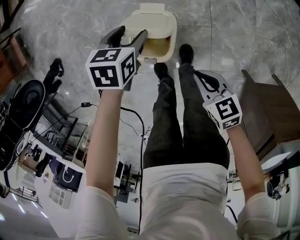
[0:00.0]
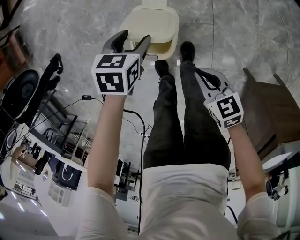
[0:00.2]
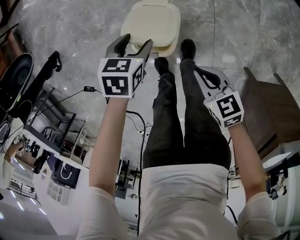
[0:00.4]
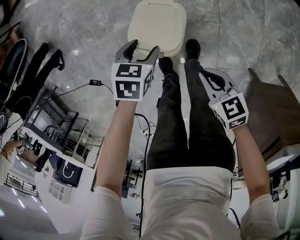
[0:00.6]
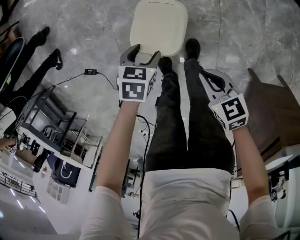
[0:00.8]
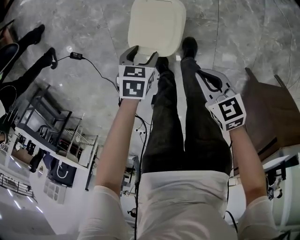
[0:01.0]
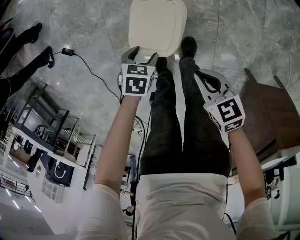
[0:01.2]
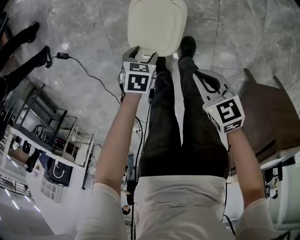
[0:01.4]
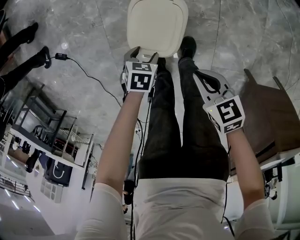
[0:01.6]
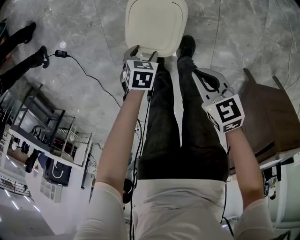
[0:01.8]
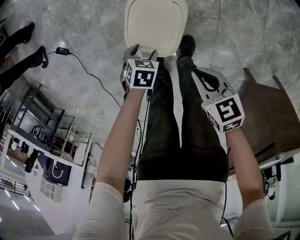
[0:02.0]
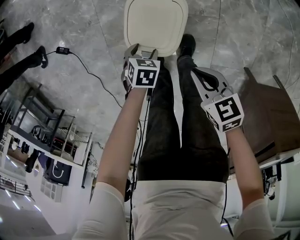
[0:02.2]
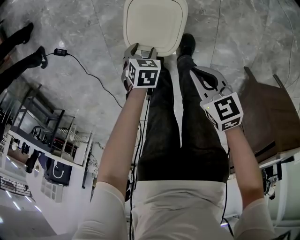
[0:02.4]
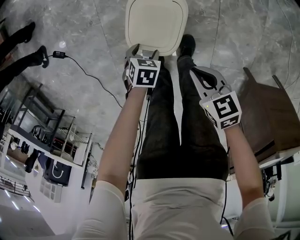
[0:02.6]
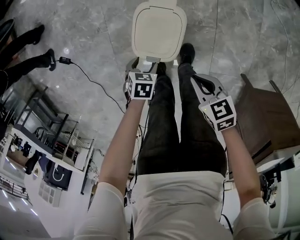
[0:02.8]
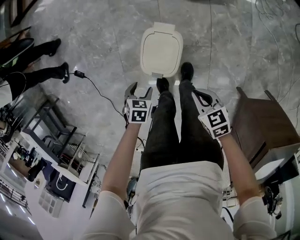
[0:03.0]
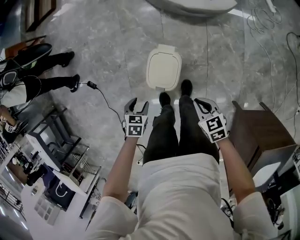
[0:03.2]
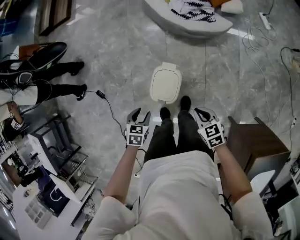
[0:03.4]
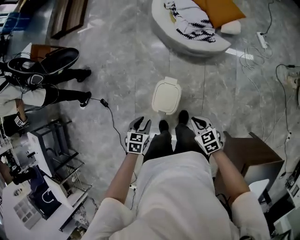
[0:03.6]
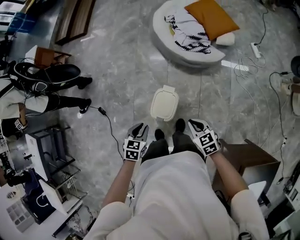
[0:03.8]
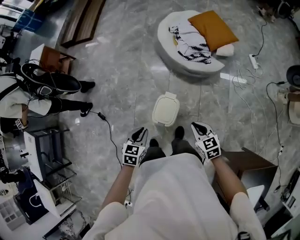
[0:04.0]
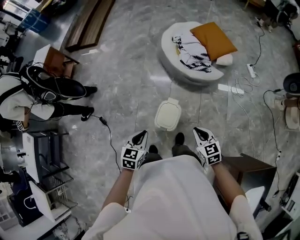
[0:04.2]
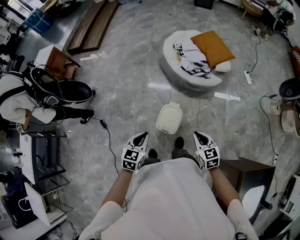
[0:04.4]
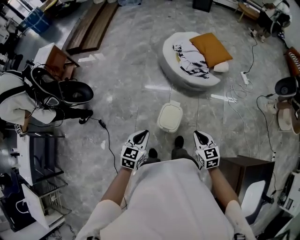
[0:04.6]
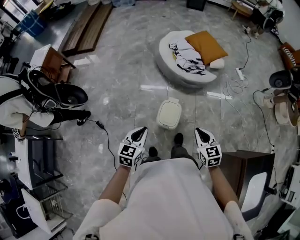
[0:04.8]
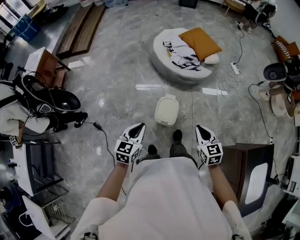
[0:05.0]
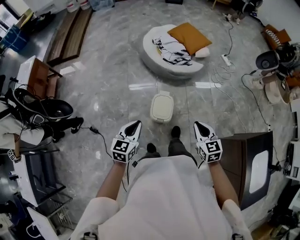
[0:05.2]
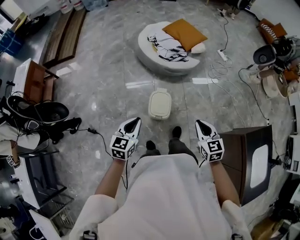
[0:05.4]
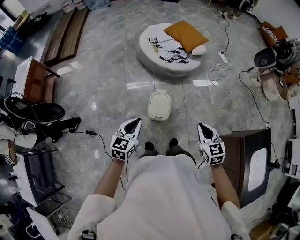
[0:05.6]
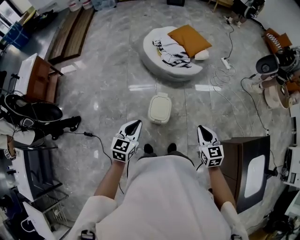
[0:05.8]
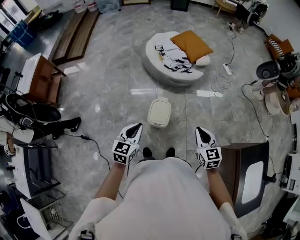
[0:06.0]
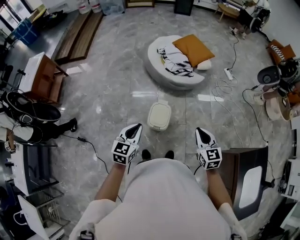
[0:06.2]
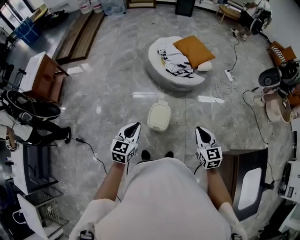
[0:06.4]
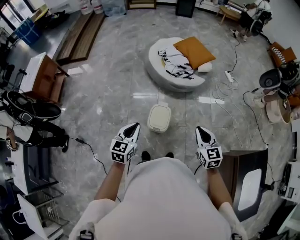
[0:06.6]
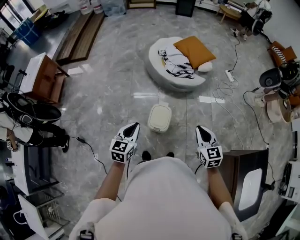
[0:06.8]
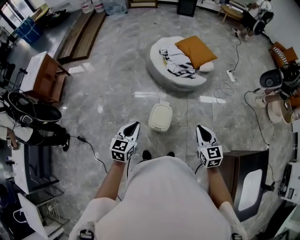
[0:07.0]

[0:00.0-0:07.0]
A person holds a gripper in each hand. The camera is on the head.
0:00.0 to 0:01.4: The left gripper changes place by approximately 25 cm, while the right gripper ends up approximately 5 cm from where it was.
0:01.4 to 0:02.8: The grippers move only a little.
0:02.8 to 0:04.2: The grippers both shift upward by approximately 40 cm. The right gripper turns by roughly 30 degrees. The left gripper tilts its fingers some 40 degrees upward, and closes up.
0:04.2 to 0:05.6: The right gripper shifts some 15 cm backward and upward, and rotates about 20 degrees, while the left gripper heads upward, backward and to the left, covering roughly 10 cm, and turns by roughly 20 degrees.
0:05.6 to 0:07.0: The right gripper travels forward by approximately 5 cm.

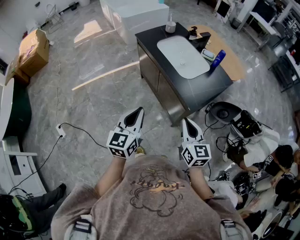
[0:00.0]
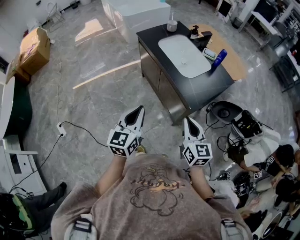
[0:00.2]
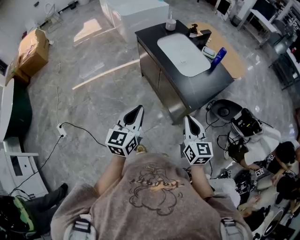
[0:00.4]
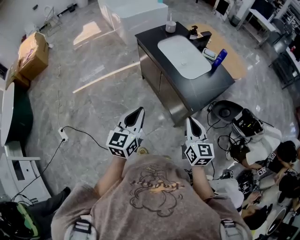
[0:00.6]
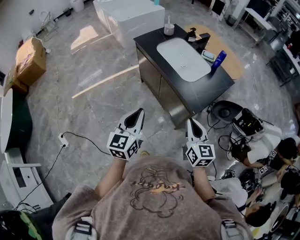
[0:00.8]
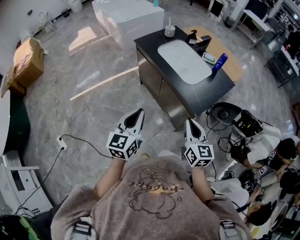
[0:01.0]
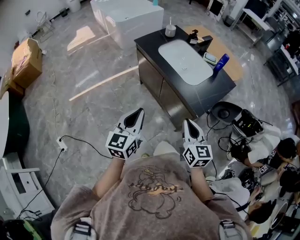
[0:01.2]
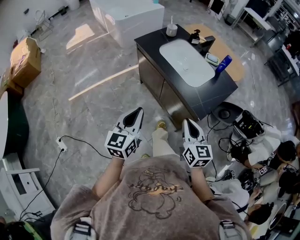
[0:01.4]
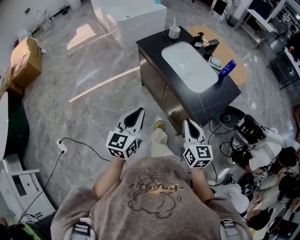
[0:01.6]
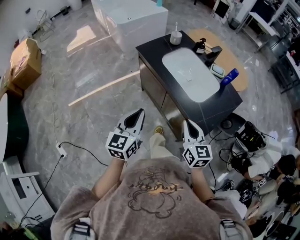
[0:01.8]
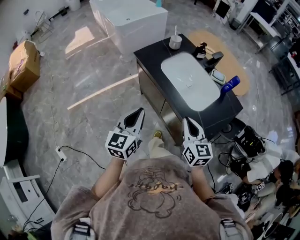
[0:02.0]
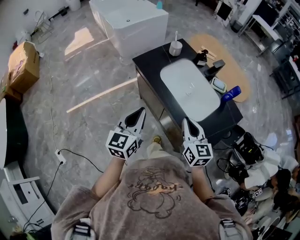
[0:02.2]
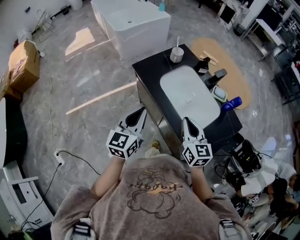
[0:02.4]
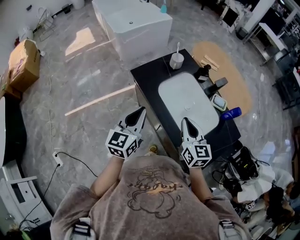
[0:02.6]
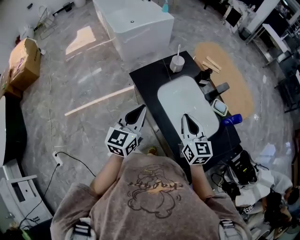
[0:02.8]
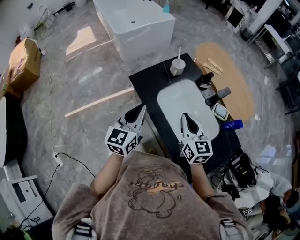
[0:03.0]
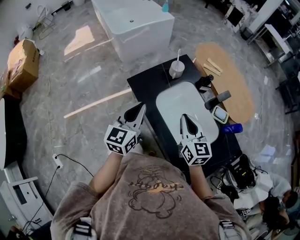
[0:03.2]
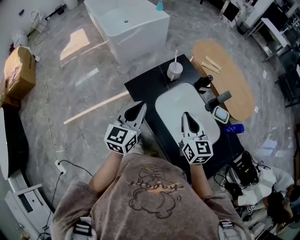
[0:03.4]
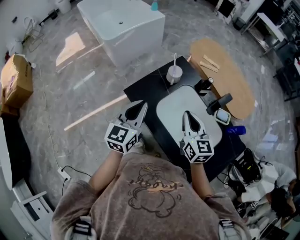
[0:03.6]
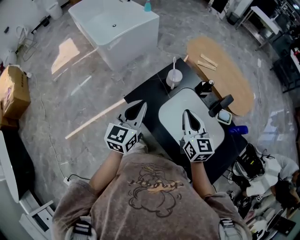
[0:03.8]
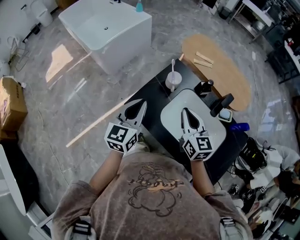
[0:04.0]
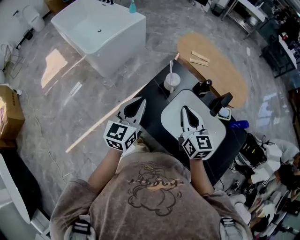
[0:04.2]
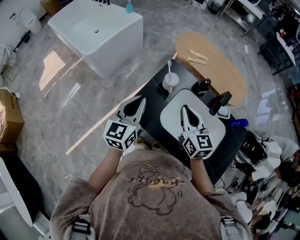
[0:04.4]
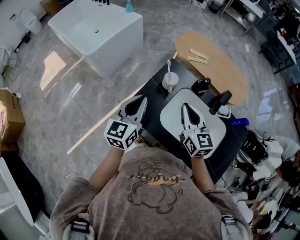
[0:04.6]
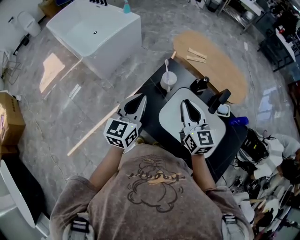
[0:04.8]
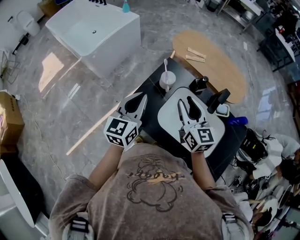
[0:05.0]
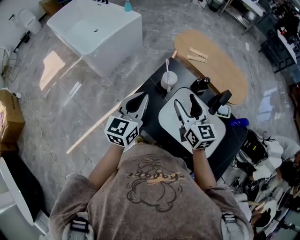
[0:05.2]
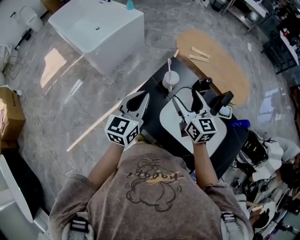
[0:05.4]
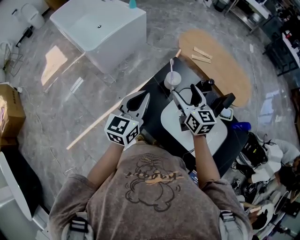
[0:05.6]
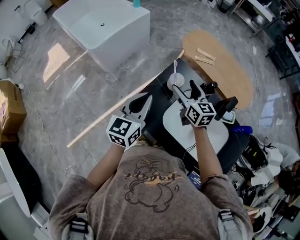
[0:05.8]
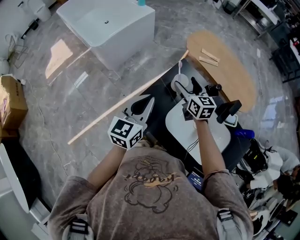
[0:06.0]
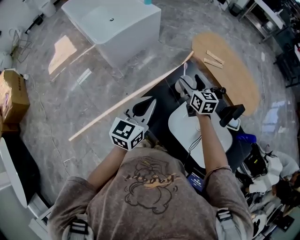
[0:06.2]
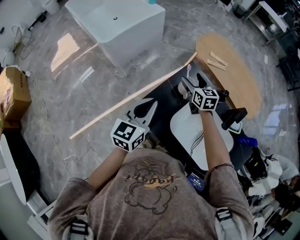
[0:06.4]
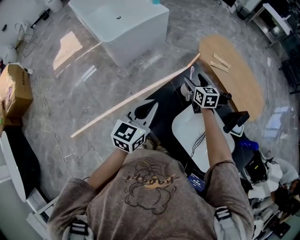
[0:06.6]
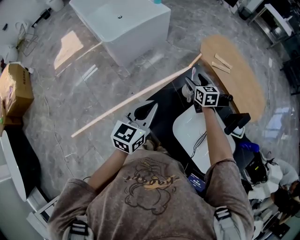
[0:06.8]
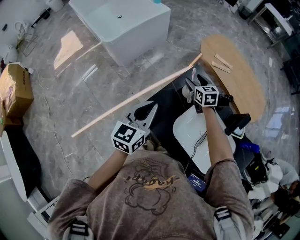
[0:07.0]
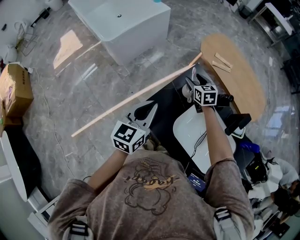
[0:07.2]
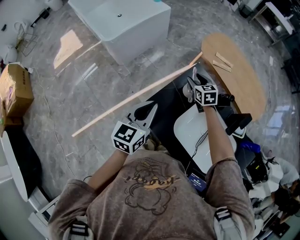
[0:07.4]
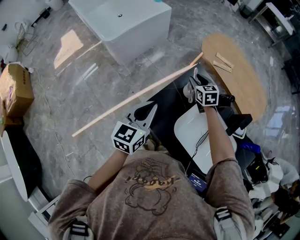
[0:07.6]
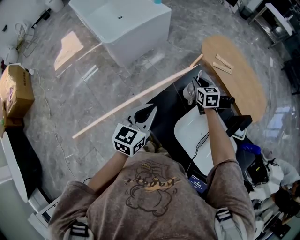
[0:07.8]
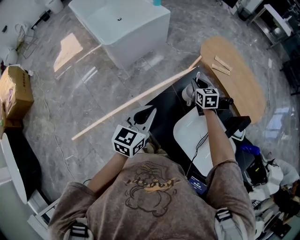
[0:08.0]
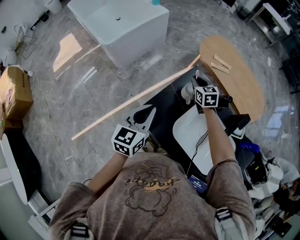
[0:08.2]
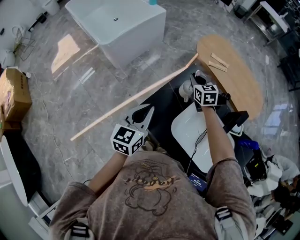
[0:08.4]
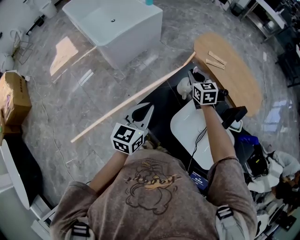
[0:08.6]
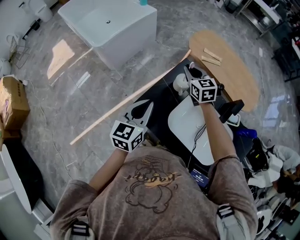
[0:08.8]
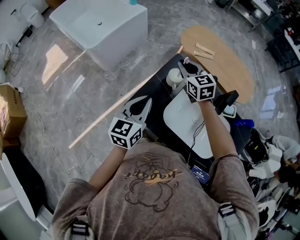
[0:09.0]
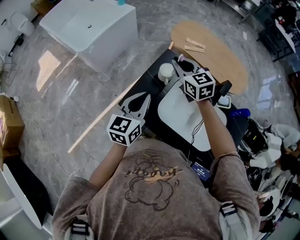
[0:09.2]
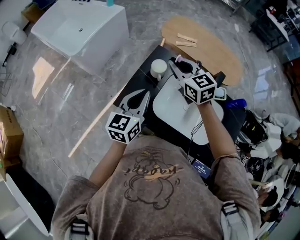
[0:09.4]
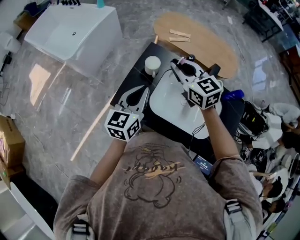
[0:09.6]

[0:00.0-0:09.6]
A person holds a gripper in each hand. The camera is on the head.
0:00.0 to 0:01.6: Both grippers move forward and to the left, some 15 cm.
0:01.6 to 0:03.2: Both grippers are carried forward, roughly 40 cm.
0:03.2 to 0:04.8: The left gripper shifts some 20 cm forward. The right gripper heads forward and to the left, covering approximately 15 cm.
0:04.8 to 0:06.4: The right gripper goes some 25 cm forward and downward, swivels approximately 20 degrees, and opens up.
0:06.4 to 0:08.0: The right gripper shifts by some 5 cm, and closes its fingers.
0:08.0 to 0:09.6: The right gripper shifts roughly 25 cm upward and backward, and changes its angle by some 20 degrees. Meanwhile the left gripper heads to the right, covering about 10 cm.

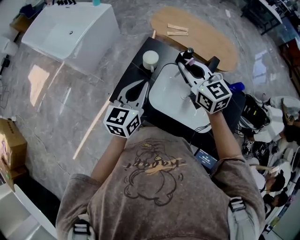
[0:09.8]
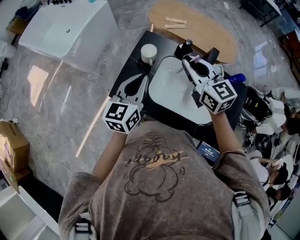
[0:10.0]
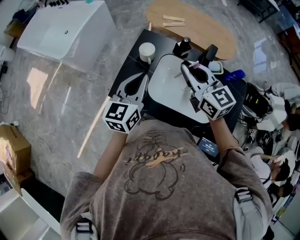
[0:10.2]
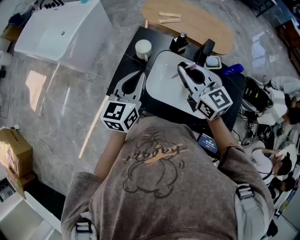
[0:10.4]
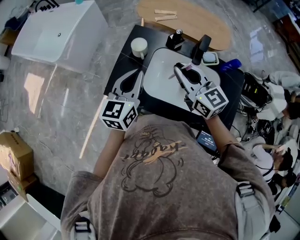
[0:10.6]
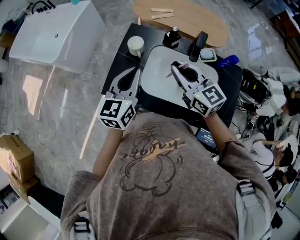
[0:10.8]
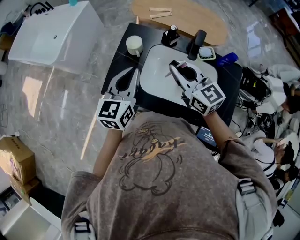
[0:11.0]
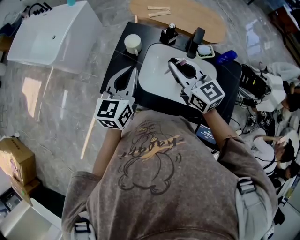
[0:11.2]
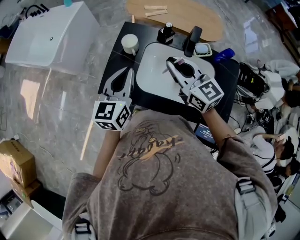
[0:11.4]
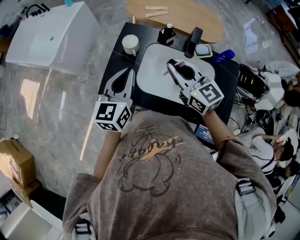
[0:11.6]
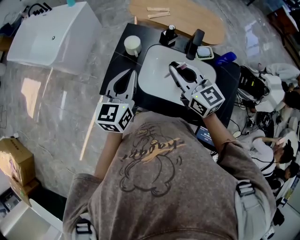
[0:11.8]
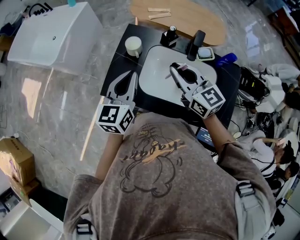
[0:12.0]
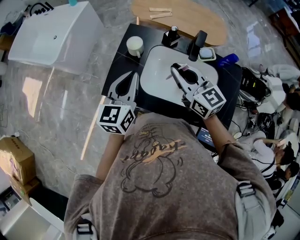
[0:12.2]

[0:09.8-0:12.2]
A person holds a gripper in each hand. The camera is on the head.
0:09.8 to 0:11.0: The right gripper moves backward, approximately 10 cm.
0:11.0 to 0:12.2: Both grippers stay put.

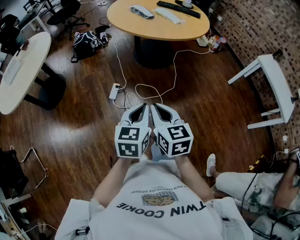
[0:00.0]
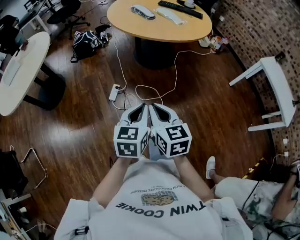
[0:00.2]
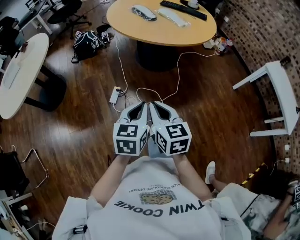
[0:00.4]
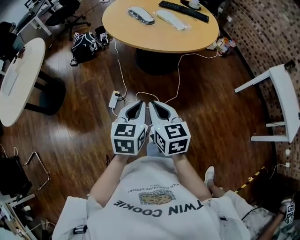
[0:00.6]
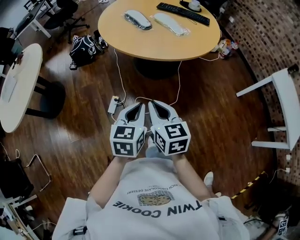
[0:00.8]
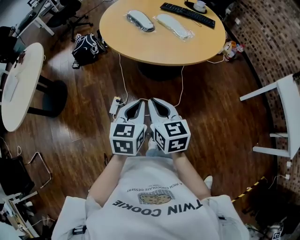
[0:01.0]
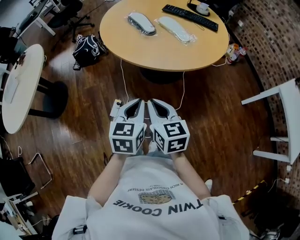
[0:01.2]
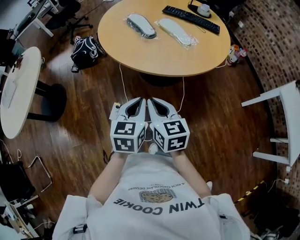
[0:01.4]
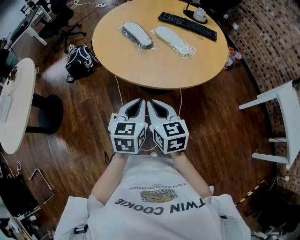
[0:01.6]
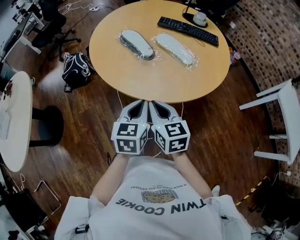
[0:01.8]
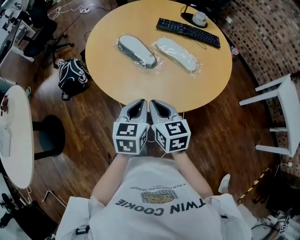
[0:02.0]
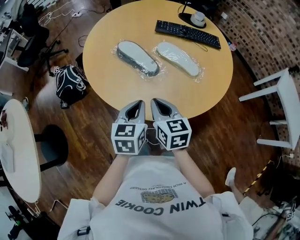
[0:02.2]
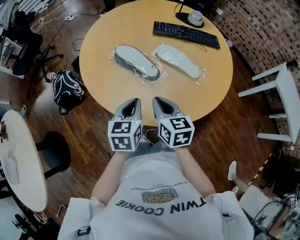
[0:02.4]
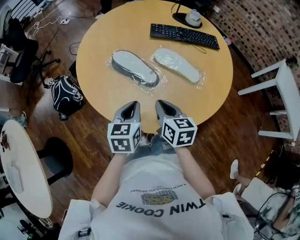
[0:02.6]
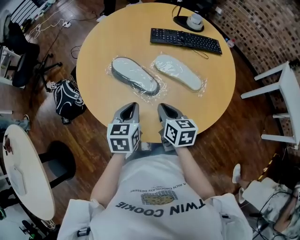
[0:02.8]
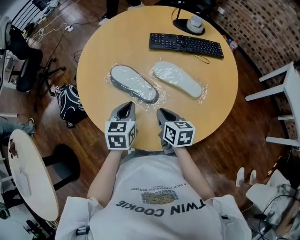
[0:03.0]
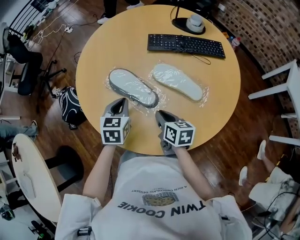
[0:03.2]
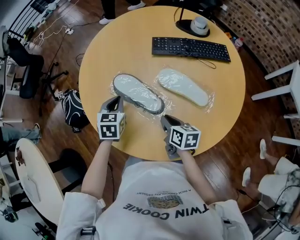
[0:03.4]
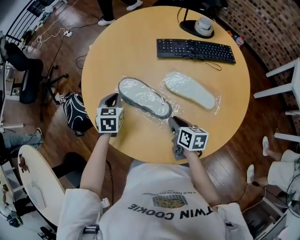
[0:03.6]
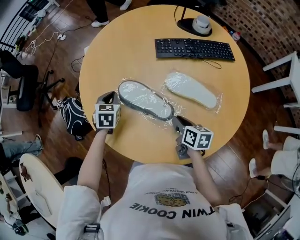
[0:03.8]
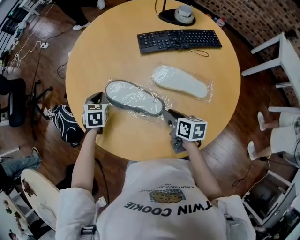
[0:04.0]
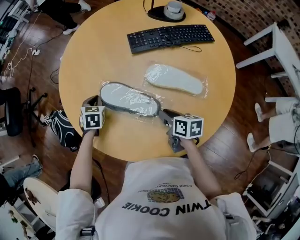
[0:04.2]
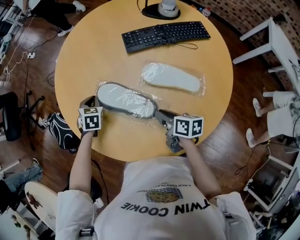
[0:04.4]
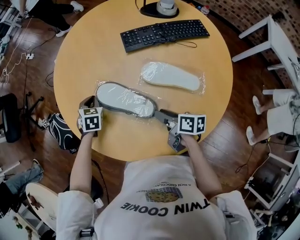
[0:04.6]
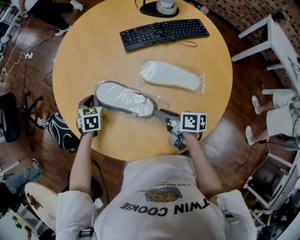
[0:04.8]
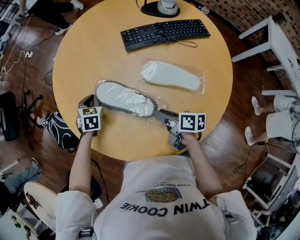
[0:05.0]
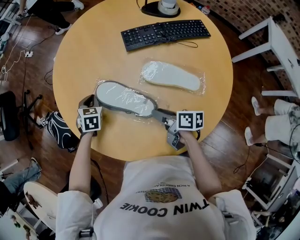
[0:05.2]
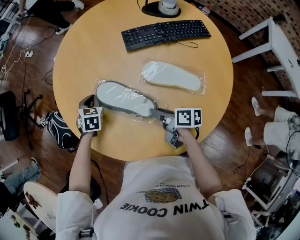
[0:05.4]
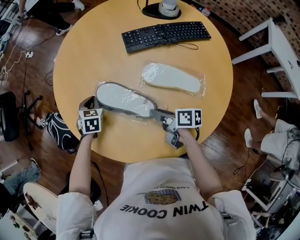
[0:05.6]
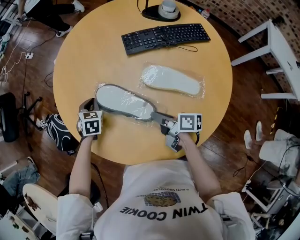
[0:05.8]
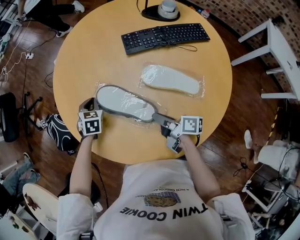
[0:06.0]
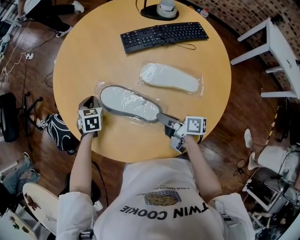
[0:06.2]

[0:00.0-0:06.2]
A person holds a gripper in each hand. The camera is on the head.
0:00.0 to 0:01.6: Both grippers are carried forward, approximately 50 cm.
0:01.6 to 0:03.2: Both grippers travel together forward, some 40 cm. The left gripper swivels approximately 20 degrees, while the right gripper turns by some 40 degrees.
0:03.2 to 0:04.6: The right gripper changes its angle by approximately 30 degrees, and opens. The left gripper shifts about 25 cm forward, downward and to the left, and swivels about 20 degrees.
0:04.6 to 0:06.2: The right gripper closes.
